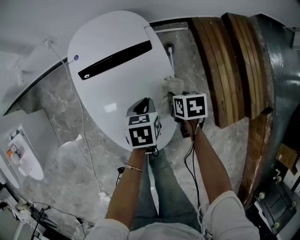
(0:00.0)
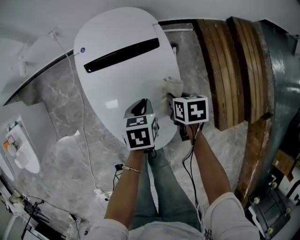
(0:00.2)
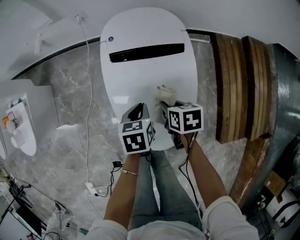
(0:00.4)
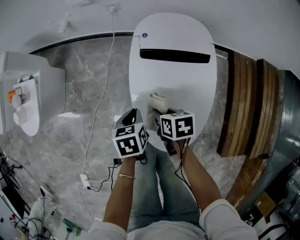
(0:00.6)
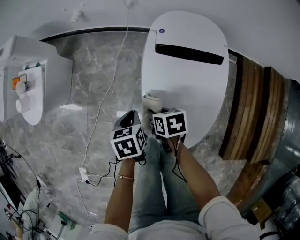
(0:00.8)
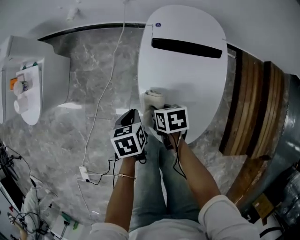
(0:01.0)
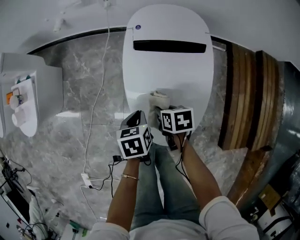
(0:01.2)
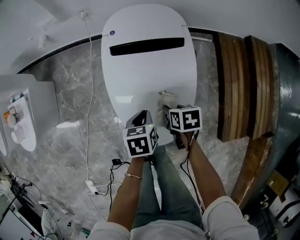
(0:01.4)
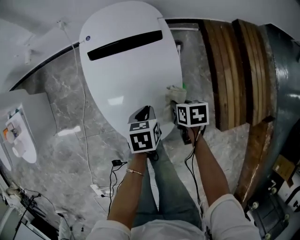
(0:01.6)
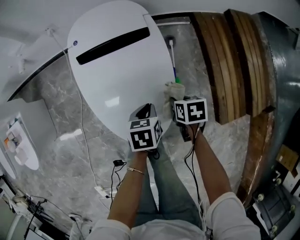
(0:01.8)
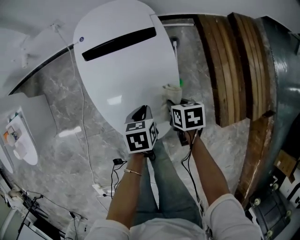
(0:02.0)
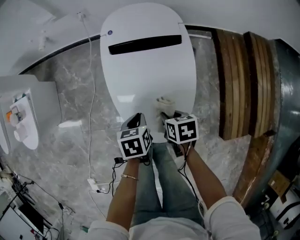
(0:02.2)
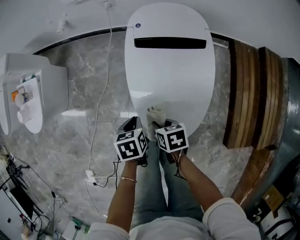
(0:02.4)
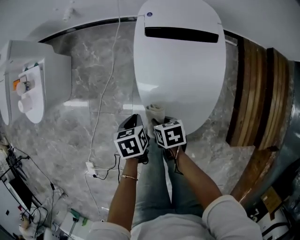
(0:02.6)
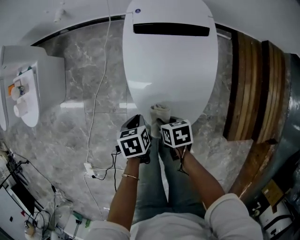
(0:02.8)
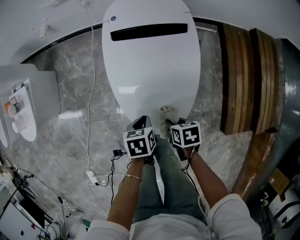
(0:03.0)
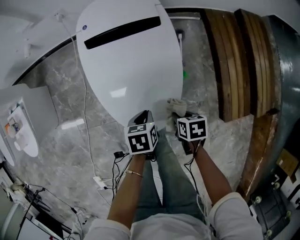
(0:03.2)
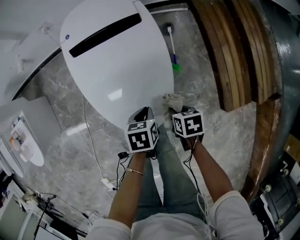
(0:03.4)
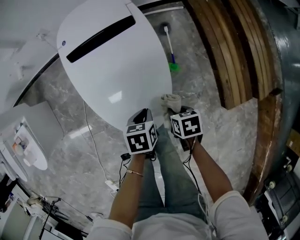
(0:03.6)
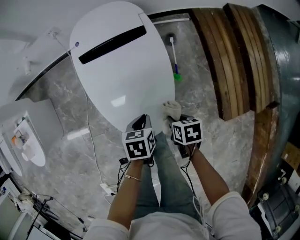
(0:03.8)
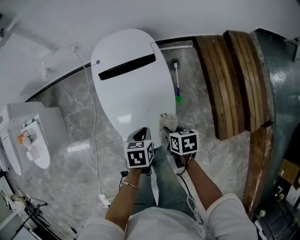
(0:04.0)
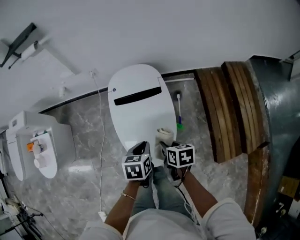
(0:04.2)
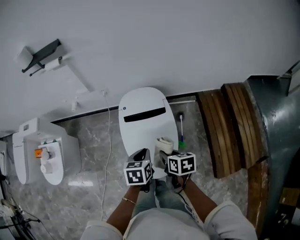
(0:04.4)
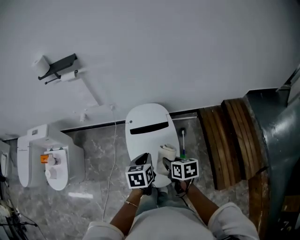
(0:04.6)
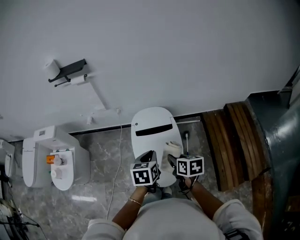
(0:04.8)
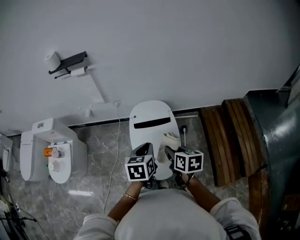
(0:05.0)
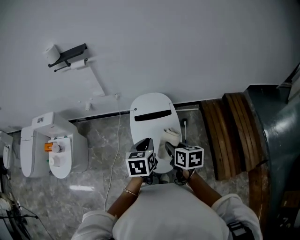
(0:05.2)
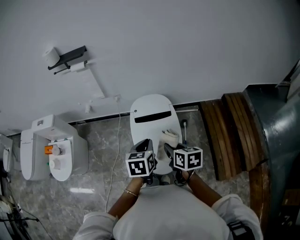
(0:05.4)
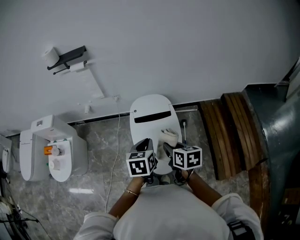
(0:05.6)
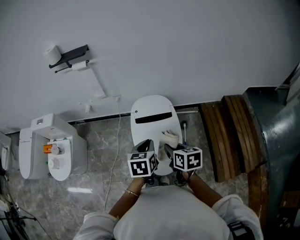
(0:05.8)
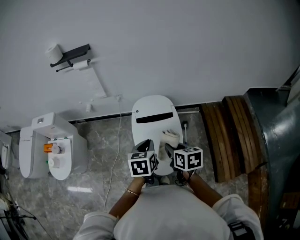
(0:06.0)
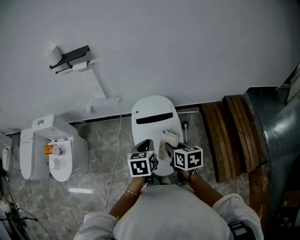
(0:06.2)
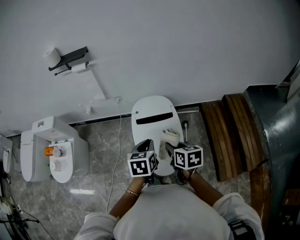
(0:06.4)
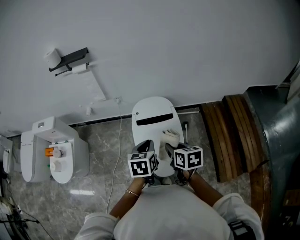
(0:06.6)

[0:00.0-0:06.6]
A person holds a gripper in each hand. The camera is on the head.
0:03.2 to 0:05.0: Both grippers travel together upward, approximately 40 cm. The left gripper changes its angle by approximately 30 degrees. The right gripper tips its fingers upward by approximately 30 degrees.
0:05.0 to 0:06.6: The grippers make only small movements.

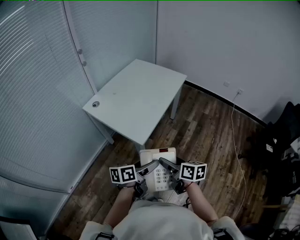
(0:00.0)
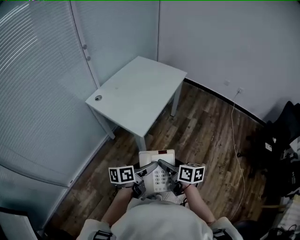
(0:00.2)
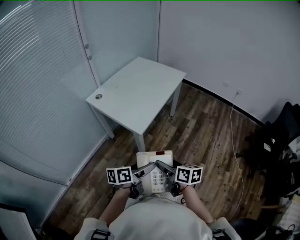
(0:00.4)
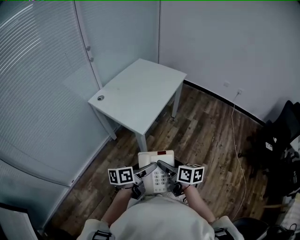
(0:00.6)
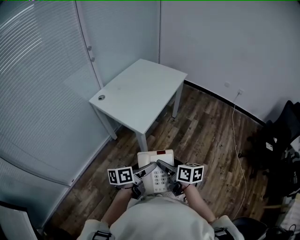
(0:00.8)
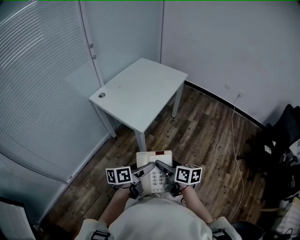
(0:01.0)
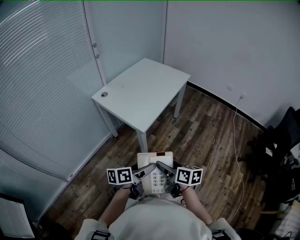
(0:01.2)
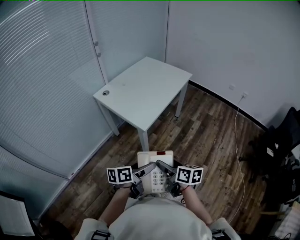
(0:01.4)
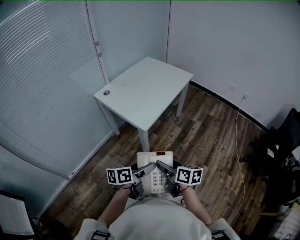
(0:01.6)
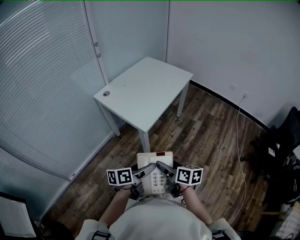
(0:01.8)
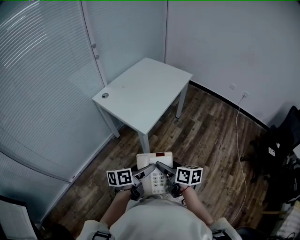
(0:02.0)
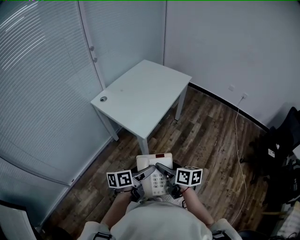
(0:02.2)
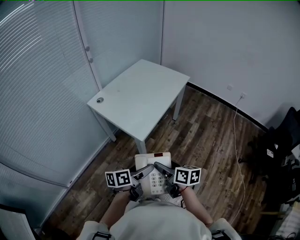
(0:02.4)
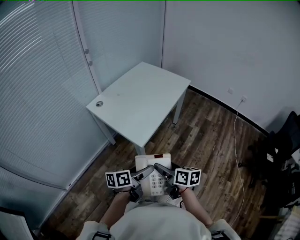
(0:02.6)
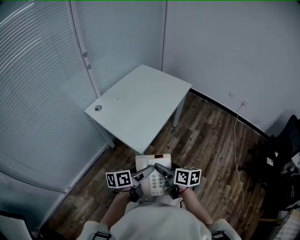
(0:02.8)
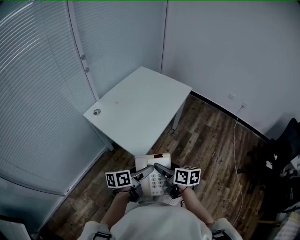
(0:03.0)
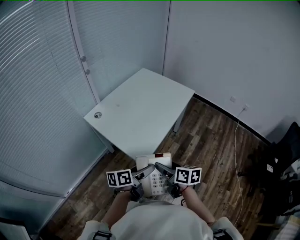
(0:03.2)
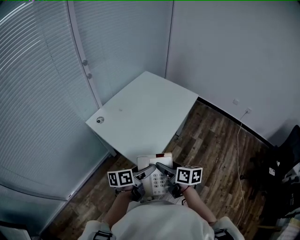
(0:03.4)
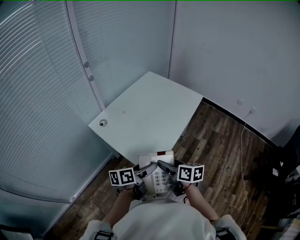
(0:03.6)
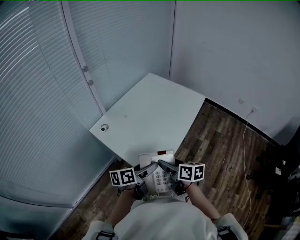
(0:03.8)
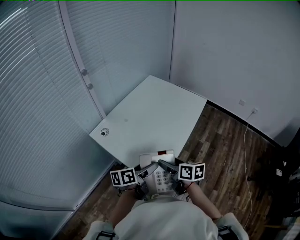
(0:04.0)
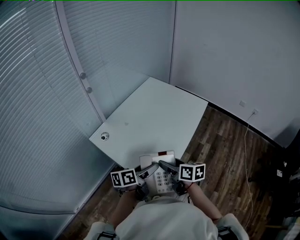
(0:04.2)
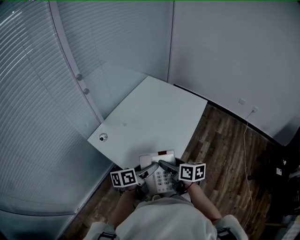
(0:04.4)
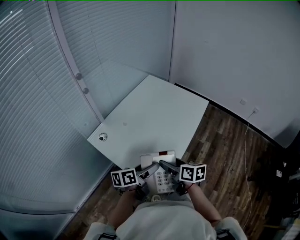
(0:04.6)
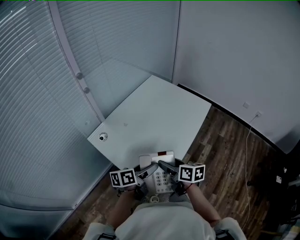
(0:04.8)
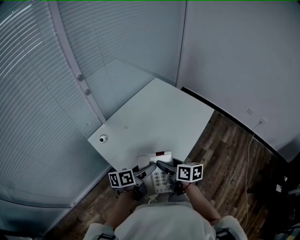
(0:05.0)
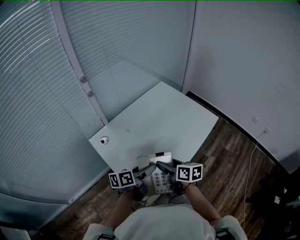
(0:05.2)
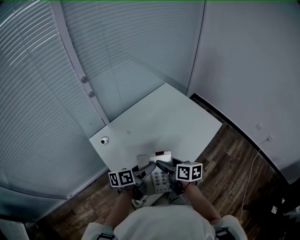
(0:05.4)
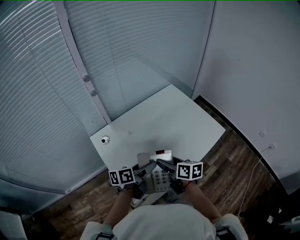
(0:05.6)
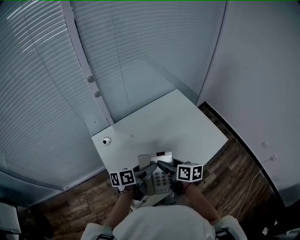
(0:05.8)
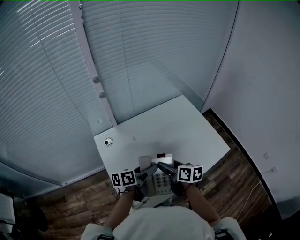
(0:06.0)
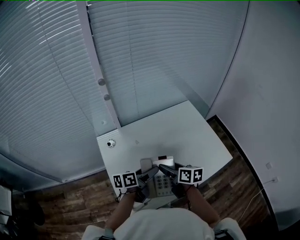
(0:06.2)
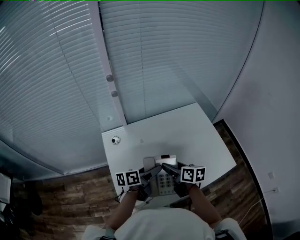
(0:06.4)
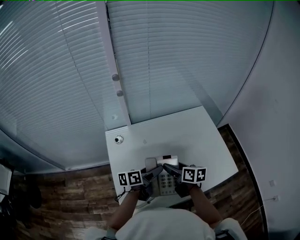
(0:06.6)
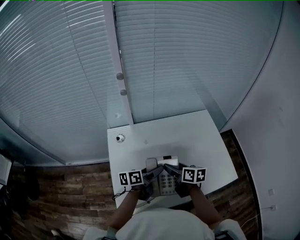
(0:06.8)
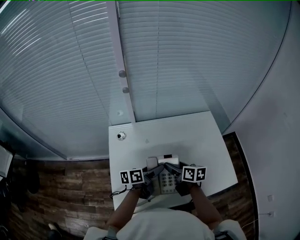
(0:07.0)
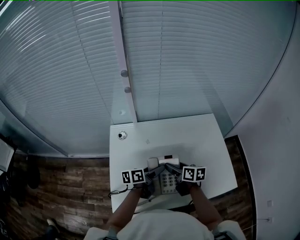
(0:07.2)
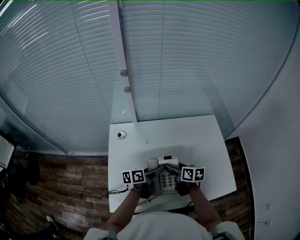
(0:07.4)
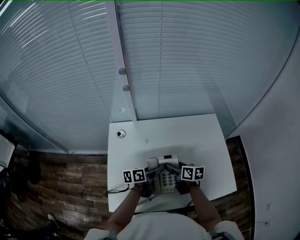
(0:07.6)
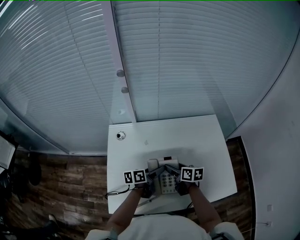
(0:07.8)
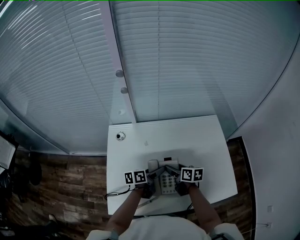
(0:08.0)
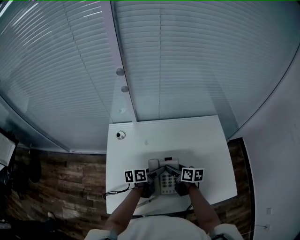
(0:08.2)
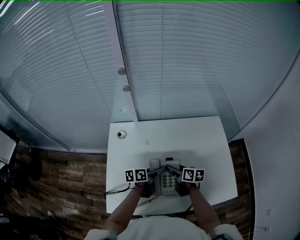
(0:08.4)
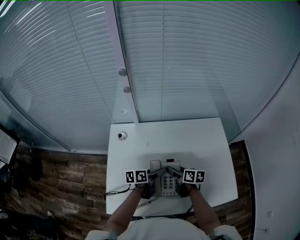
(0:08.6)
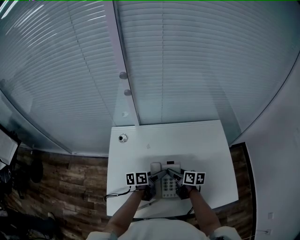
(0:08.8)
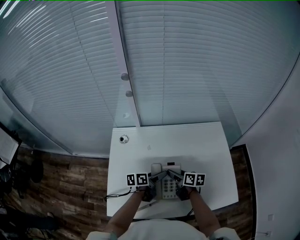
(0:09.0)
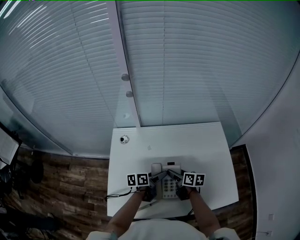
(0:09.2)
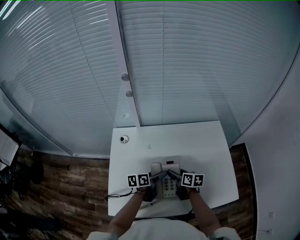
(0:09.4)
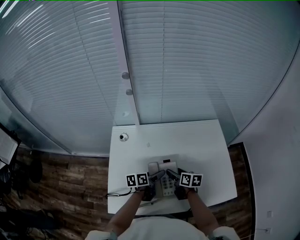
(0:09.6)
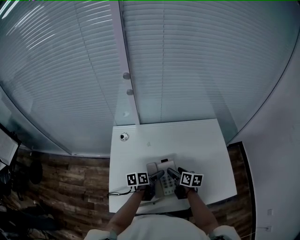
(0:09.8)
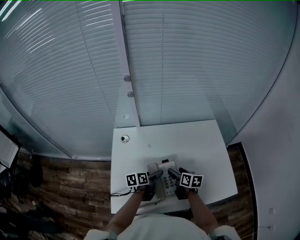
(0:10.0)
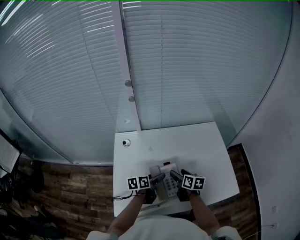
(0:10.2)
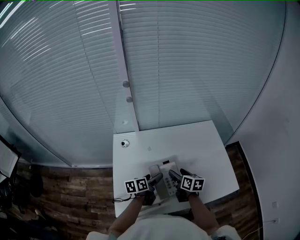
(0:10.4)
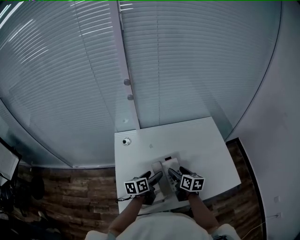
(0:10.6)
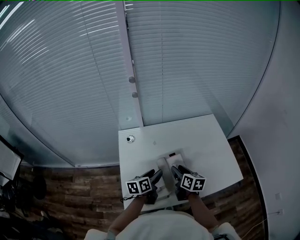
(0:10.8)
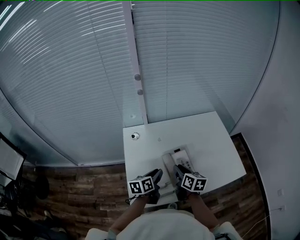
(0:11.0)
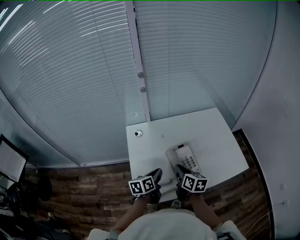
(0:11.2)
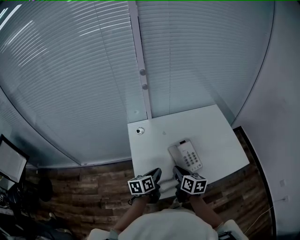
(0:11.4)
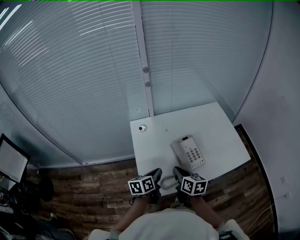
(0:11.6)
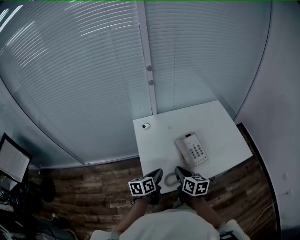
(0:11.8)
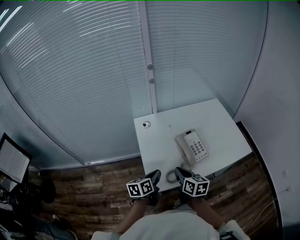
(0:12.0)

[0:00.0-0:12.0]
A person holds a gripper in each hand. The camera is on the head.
0:00.0 to 0:01.6: Both grippers travel together backward, approximately 10 cm.
0:01.6 to 0:03.0: Both grippers move forward, approximately 20 cm.
0:03.0 to 0:04.4: The grippers both shift forward by some 20 cm.
0:04.4 to 0:06.0: The left gripper moves about 20 cm, and rotates approximately 30 degrees. The right gripper ends up about 20 cm from where it was, and turns by approximately 30 degrees.
0:06.0 to 0:07.6: The right gripper goes some 15 cm forward and downward, and changes its angle by about 20 degrees. Meanwhile the left gripper travels downward and forward by roughly 10 cm, and turns by approximately 20 degrees.
0:07.6 to 0:09.0: The grippers stay close to where they were, moving slightly.
0:09.0 to 0:10.4: The right gripper heads upward, covering some 5 cm. The left gripper moves about 10 cm.
0:10.4 to 0:12.0: The two grippers go some 25 cm backward and to the left. The right gripper closes its fingers; the left gripper closes its fingers.

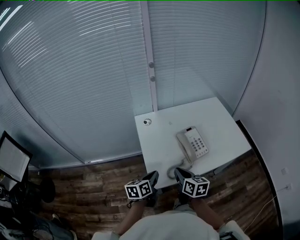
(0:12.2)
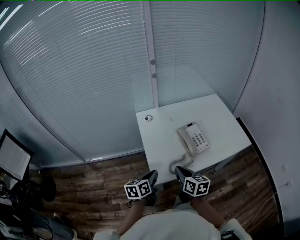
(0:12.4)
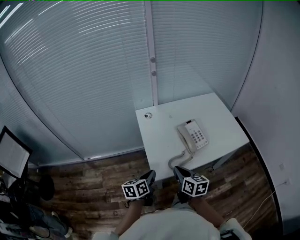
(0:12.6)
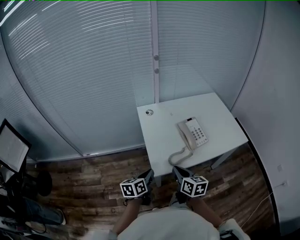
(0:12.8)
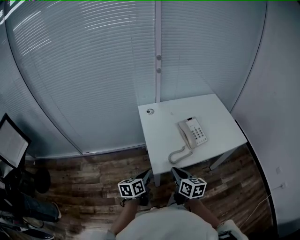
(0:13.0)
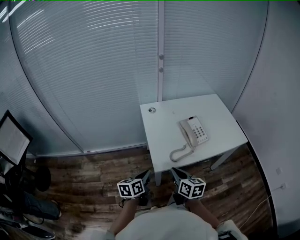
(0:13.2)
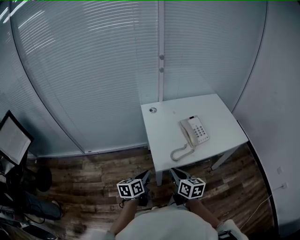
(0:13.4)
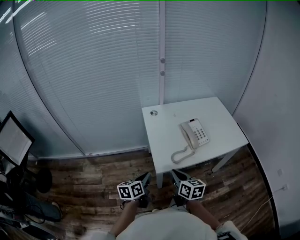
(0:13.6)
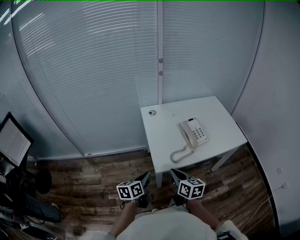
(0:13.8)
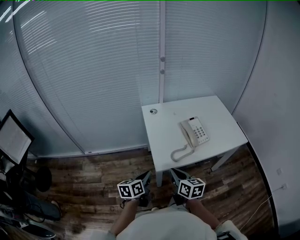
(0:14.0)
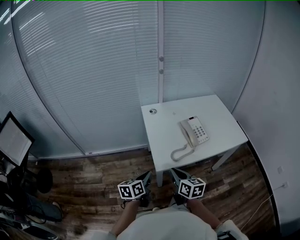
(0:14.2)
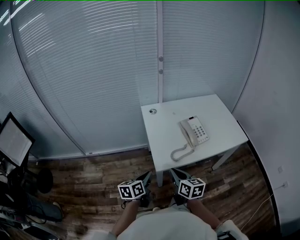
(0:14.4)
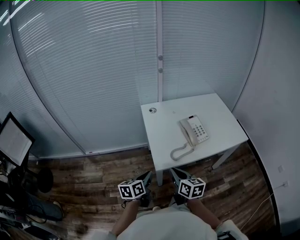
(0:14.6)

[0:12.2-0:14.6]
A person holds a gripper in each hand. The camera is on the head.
0:12.2 to 0:13.4: The grippers both shift backward and to the left by approximately 15 cm.
0:13.4 to 0:14.6: Neither gripper changes place.

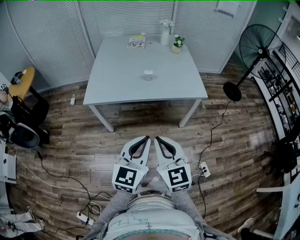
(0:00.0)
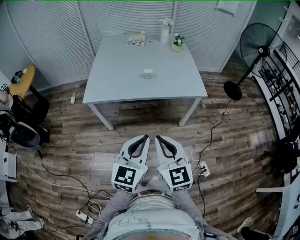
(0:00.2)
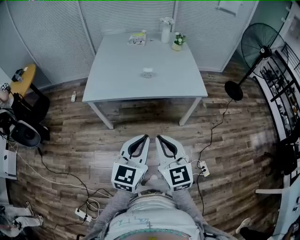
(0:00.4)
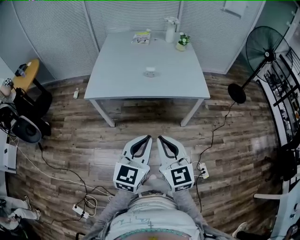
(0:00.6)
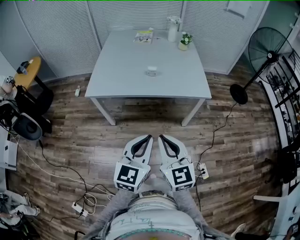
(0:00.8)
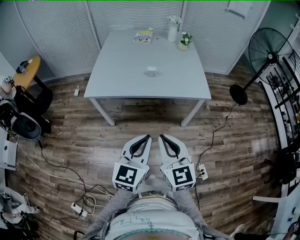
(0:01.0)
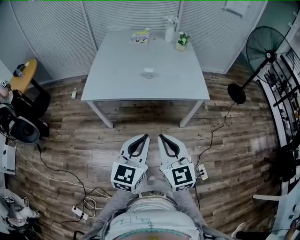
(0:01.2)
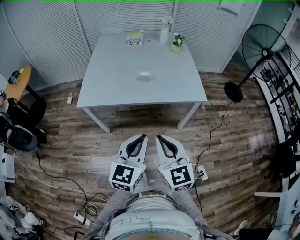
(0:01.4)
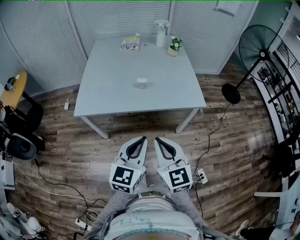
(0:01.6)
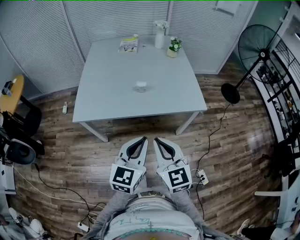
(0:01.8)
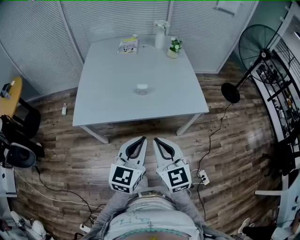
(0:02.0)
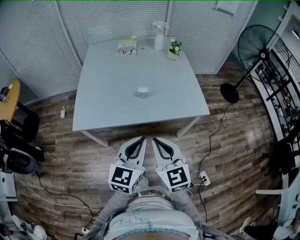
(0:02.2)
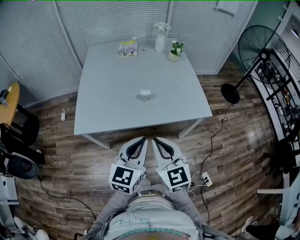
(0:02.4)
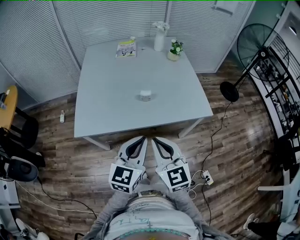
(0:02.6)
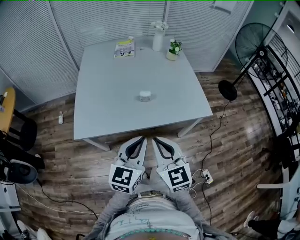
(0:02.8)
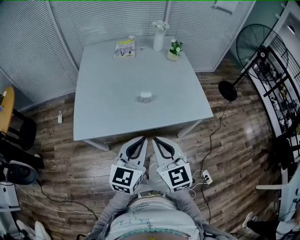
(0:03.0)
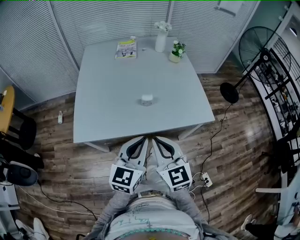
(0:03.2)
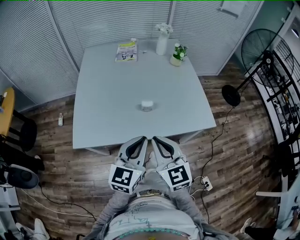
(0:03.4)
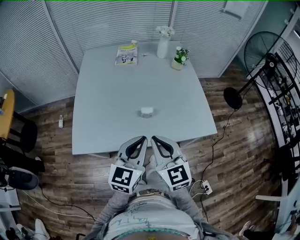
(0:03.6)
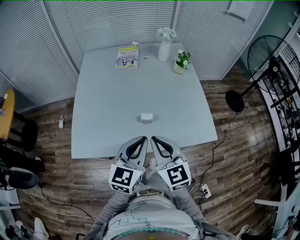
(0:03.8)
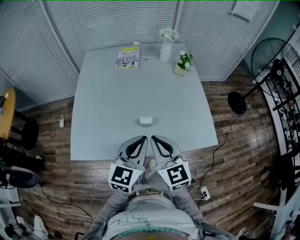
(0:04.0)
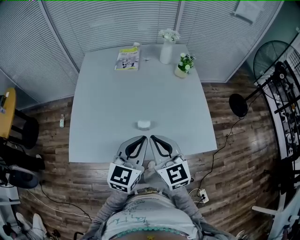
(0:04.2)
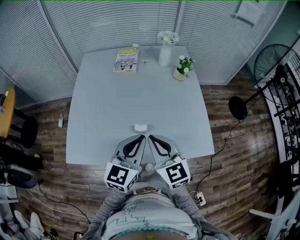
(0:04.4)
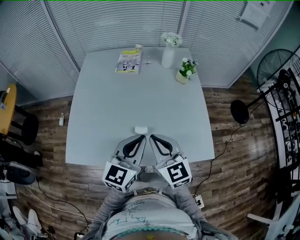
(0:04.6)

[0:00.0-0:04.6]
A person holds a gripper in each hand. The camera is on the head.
0:00.0 to 0:01.6: Both grippers travel together forward, roughly 10 cm.
0:01.6 to 0:03.0: The two grippers go approximately 20 cm forward and to the left.
0:03.0 to 0:04.6: Both grippers move forward, roughly 25 cm.
